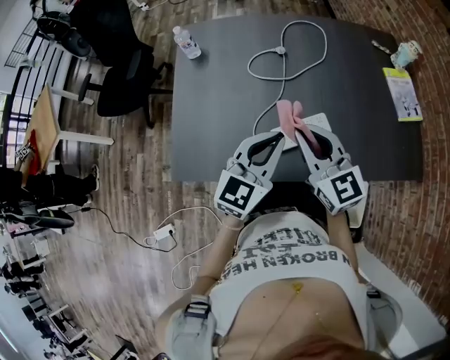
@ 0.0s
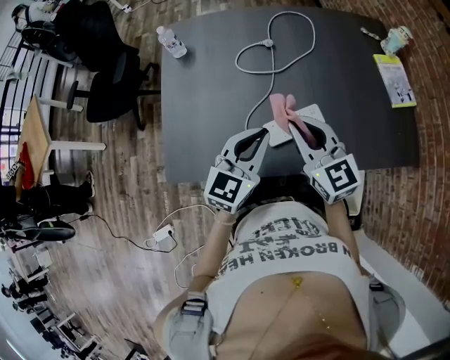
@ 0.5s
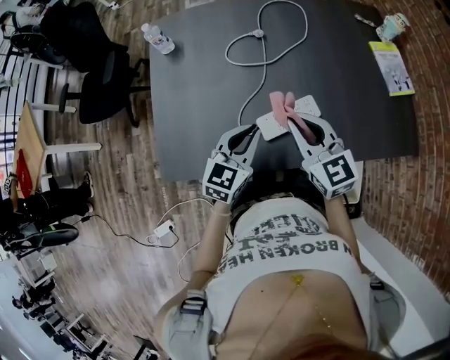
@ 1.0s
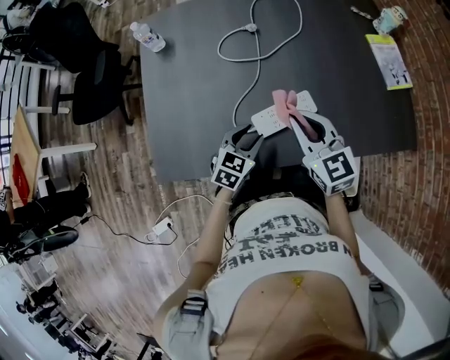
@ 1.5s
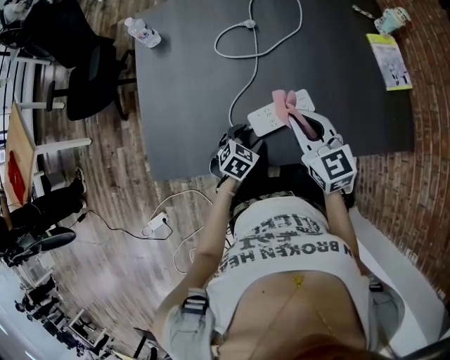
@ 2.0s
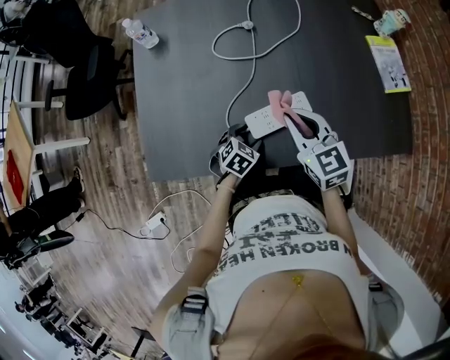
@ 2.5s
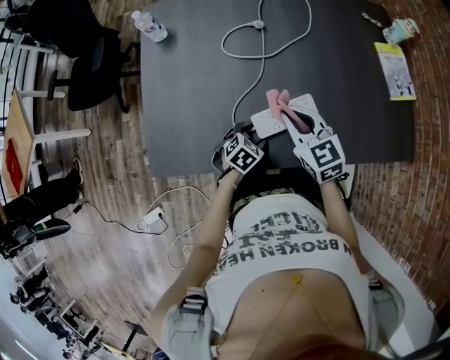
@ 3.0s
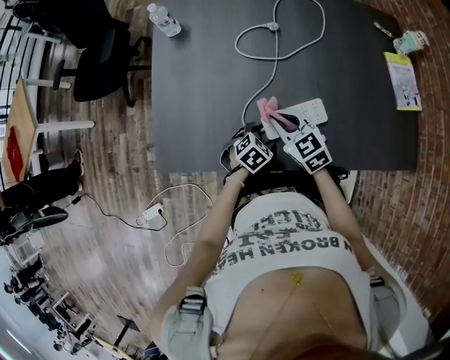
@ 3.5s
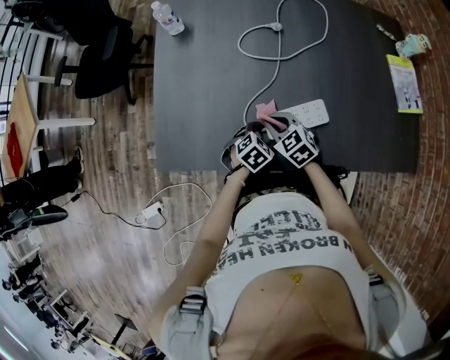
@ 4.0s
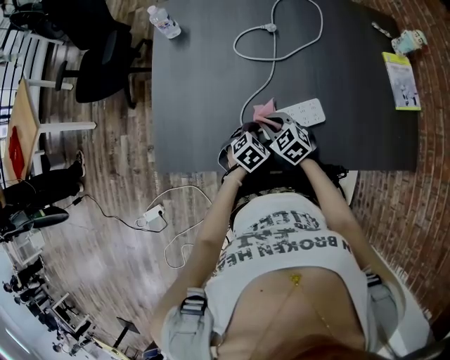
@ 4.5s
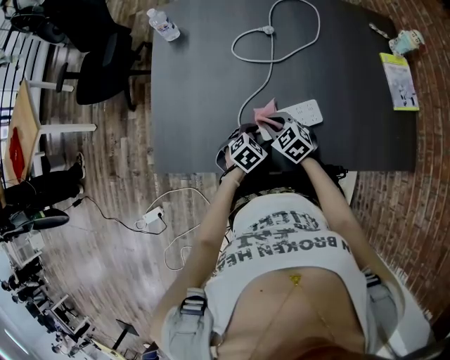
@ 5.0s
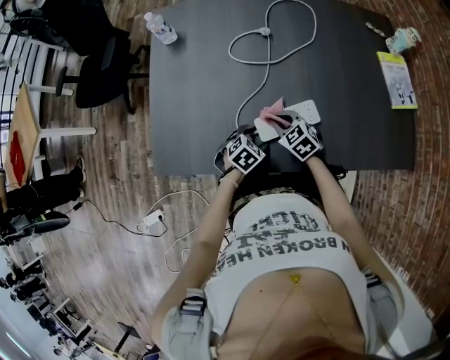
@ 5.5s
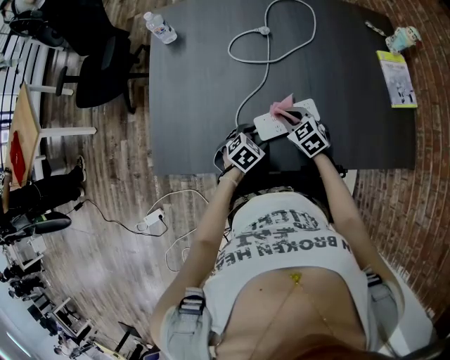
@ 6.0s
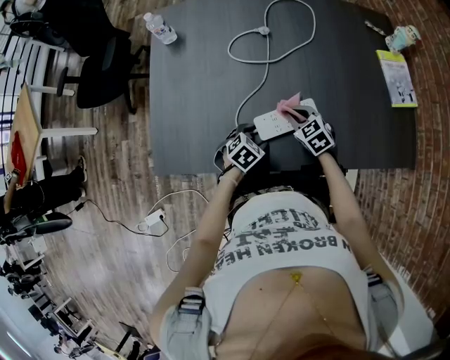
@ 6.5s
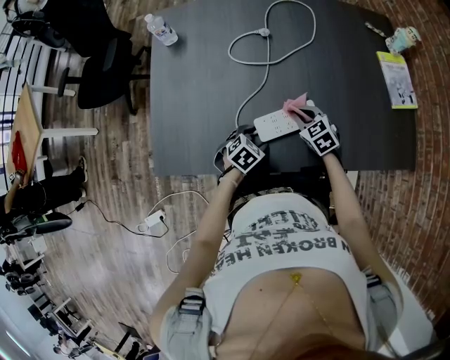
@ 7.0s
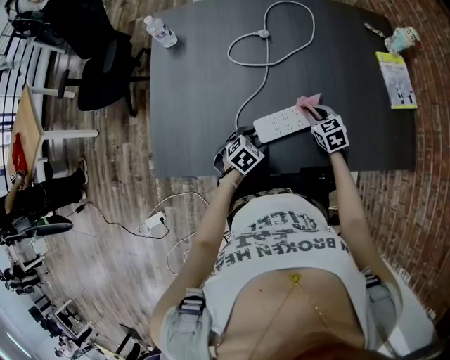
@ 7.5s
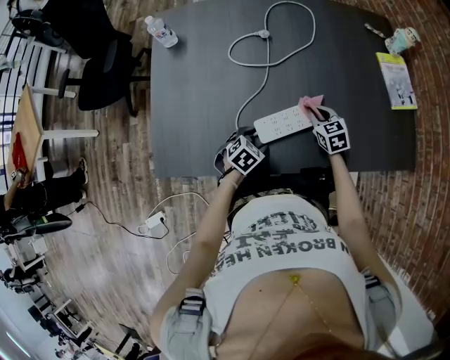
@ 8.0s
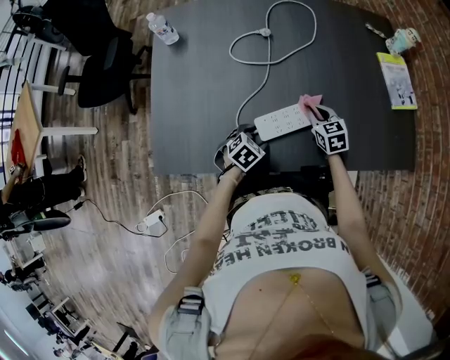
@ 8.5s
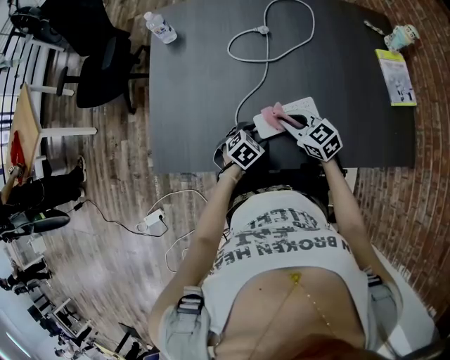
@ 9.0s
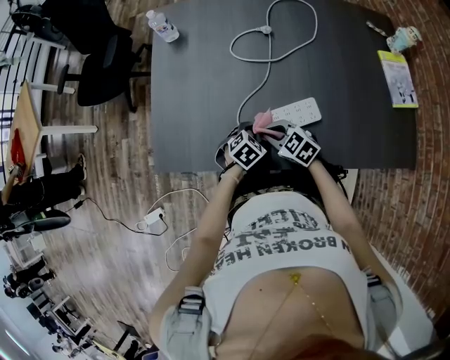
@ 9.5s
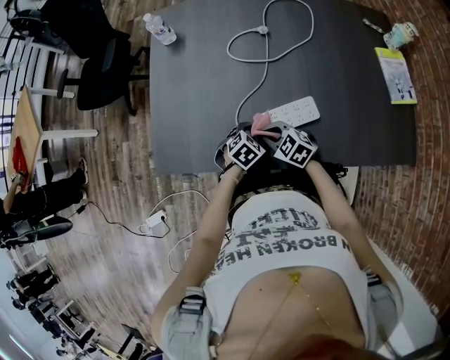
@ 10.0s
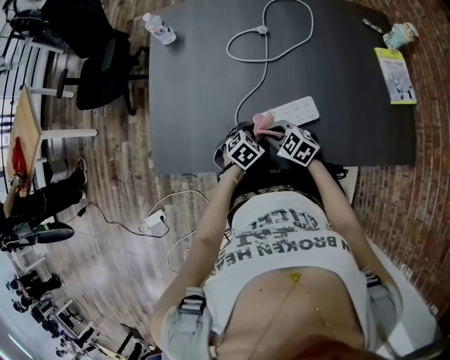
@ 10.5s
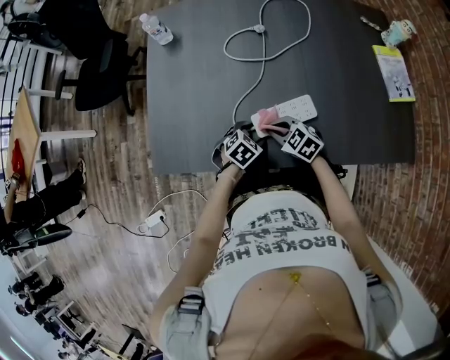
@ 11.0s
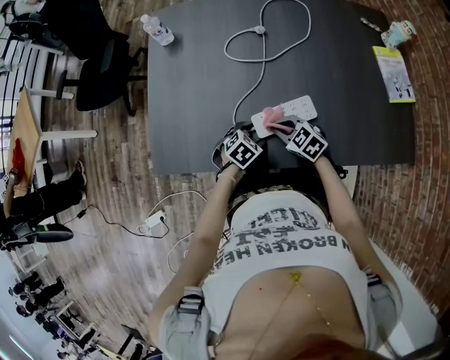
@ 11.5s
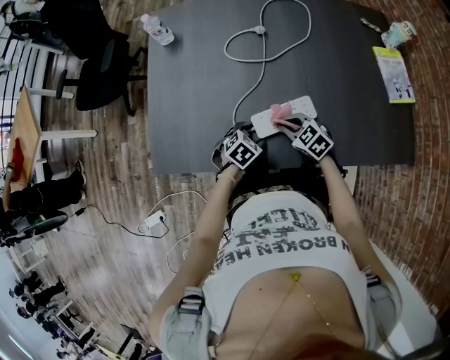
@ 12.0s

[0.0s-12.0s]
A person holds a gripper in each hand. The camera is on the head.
0.0s to 2.0s: The right gripper moves downward, approximately 10 cm. Meanwhile the left gripper shifts some 30 cm downward, tips its fingers downward by about 40 degrees, and opens.
2.0s to 4.0s: The right gripper shifts approximately 20 cm downward and to the left, and turns by roughly 30 degrees.
4.0s to 6.0s: The right gripper goes about 10 cm to the right.
6.0s to 8.0s: The right gripper goes approximately 10 cm to the right and forward, and rotates approximately 20 degrees.
8.0s to 10.0s: The right gripper changes place by approximately 20 cm, and turns by approximately 40 degrees.
10.0s to 12.0s: The right gripper changes place by some 10 cm.

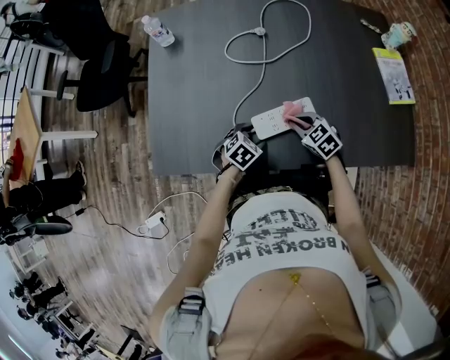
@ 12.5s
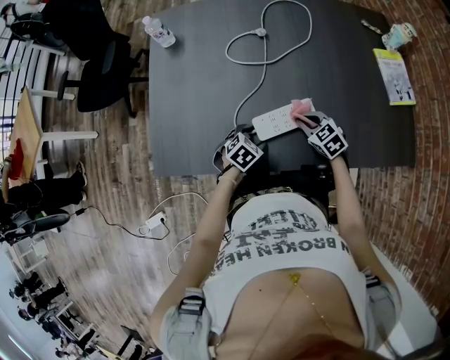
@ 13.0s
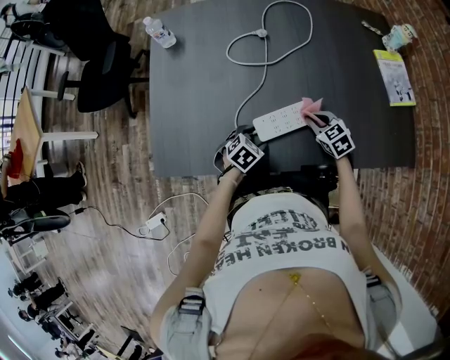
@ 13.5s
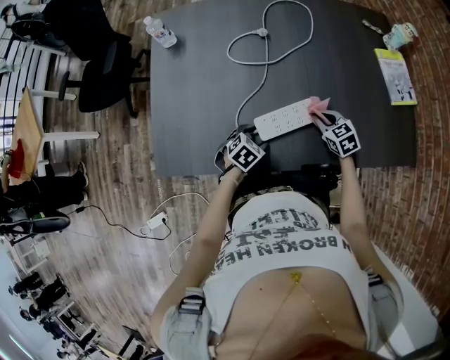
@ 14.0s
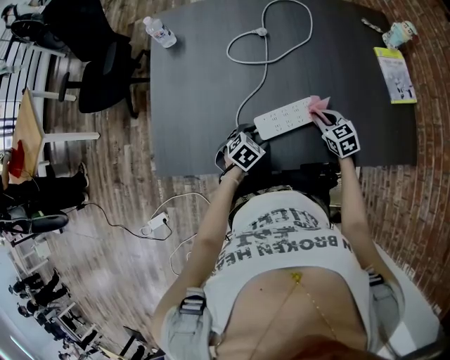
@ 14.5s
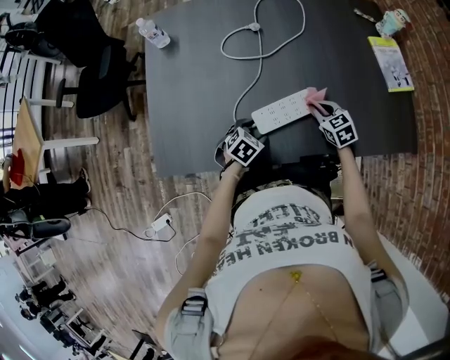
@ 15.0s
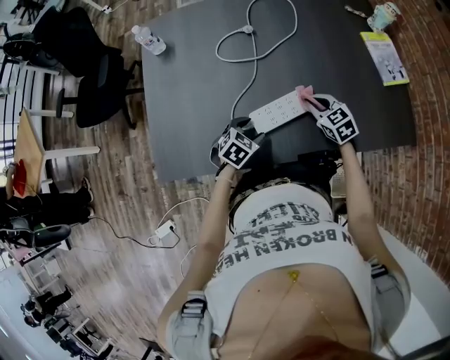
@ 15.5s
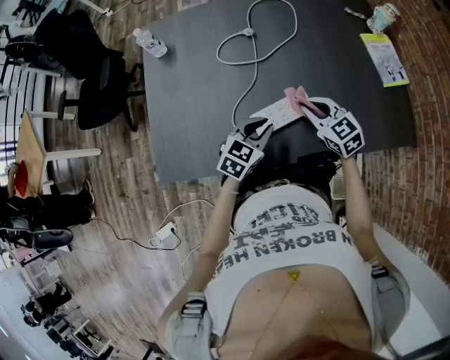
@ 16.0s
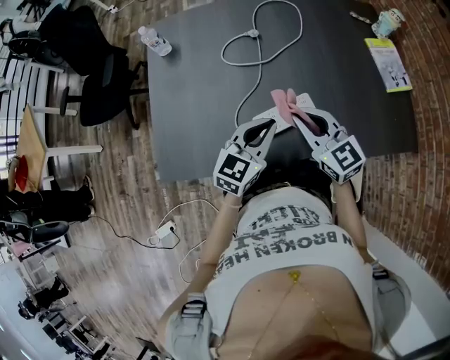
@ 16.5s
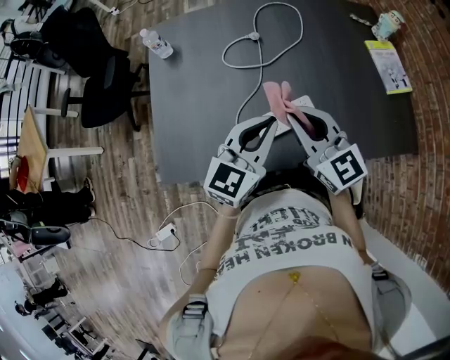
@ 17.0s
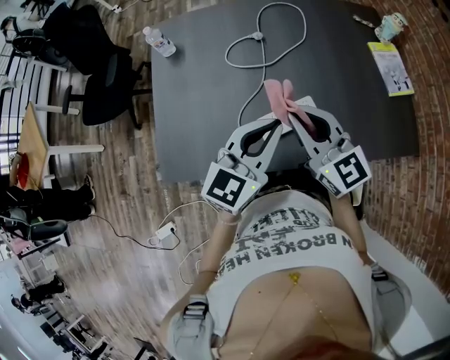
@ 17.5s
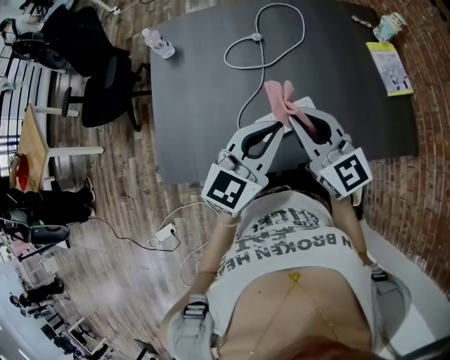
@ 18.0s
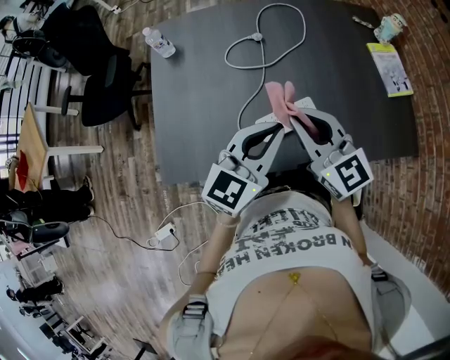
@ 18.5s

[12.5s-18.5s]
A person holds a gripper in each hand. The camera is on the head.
12.5s to 14.5s: The right gripper moves to the right, approximately 10 cm.
14.5s to 16.5s: The left gripper shifts approximately 25 cm upward, angles its fingers upward, by some 40 degrees, and closes, while the right gripper moves upward and to the left, approximately 25 cm, and tilts its fingers approximately 30 degrees upward.
16.5s to 18.5s: The grippers both shift upward by some 10 cm.

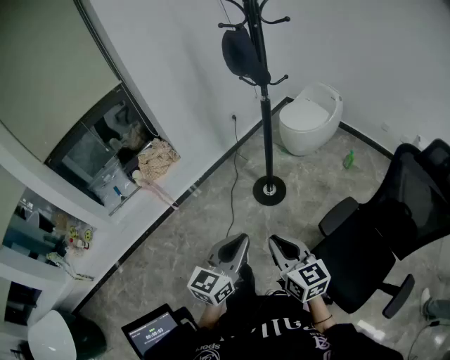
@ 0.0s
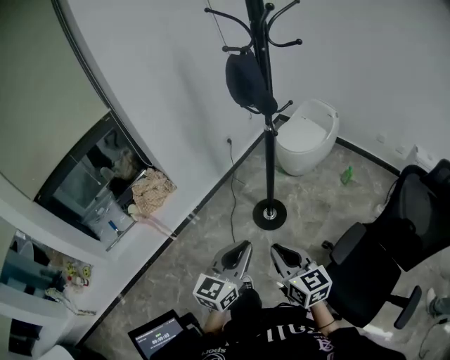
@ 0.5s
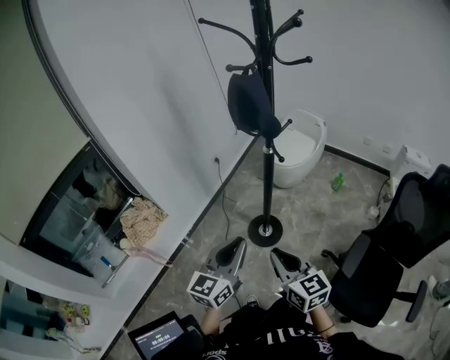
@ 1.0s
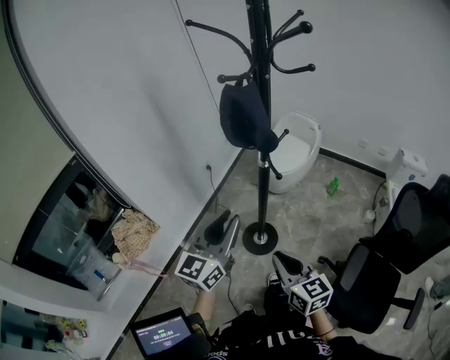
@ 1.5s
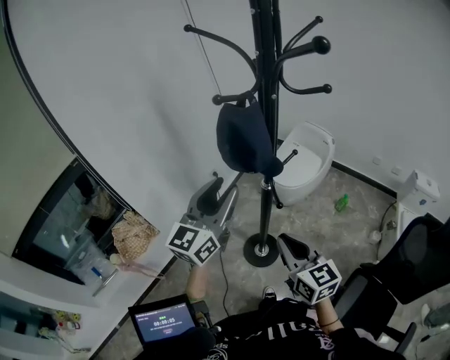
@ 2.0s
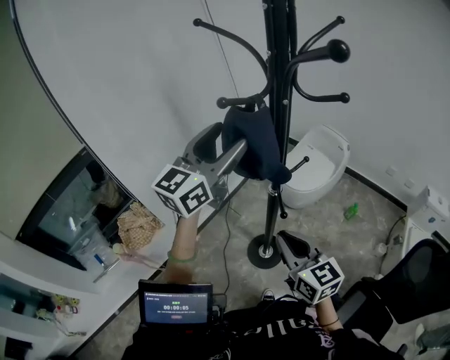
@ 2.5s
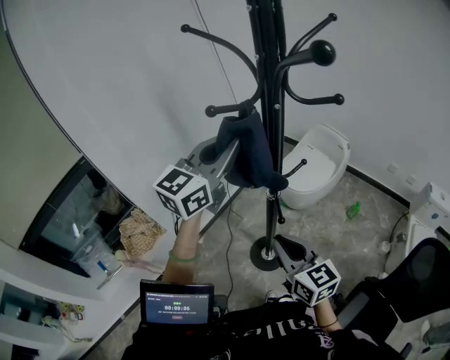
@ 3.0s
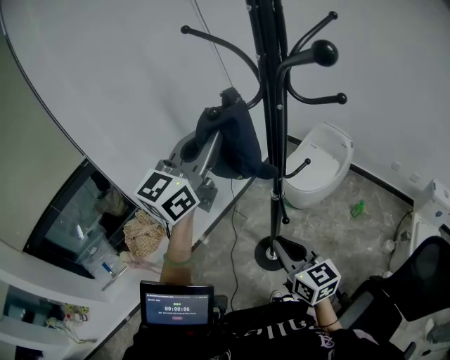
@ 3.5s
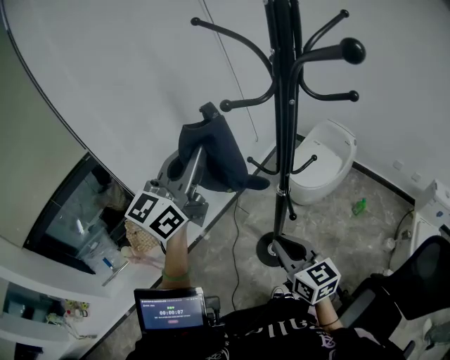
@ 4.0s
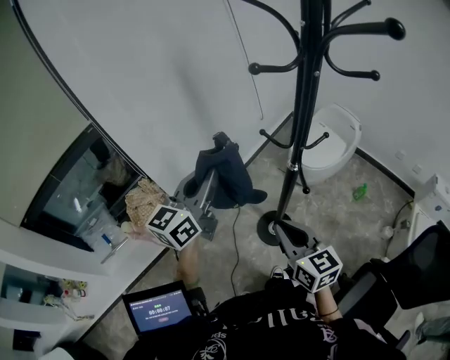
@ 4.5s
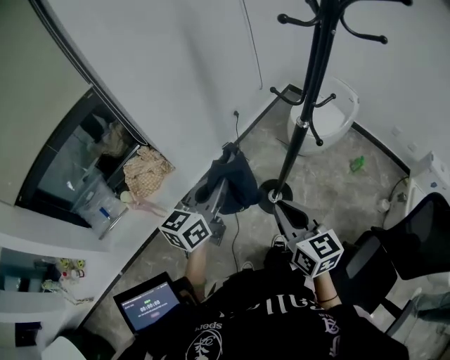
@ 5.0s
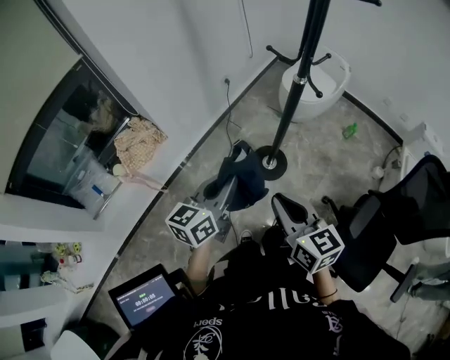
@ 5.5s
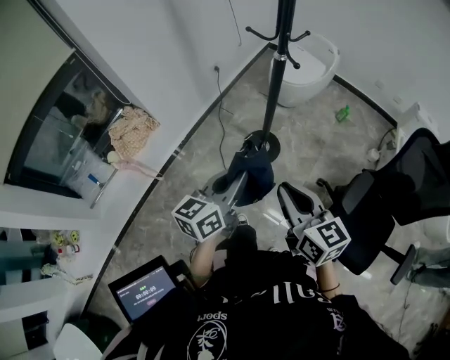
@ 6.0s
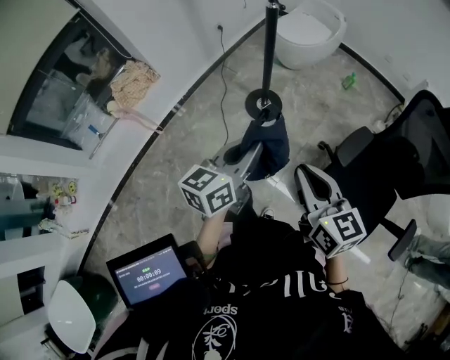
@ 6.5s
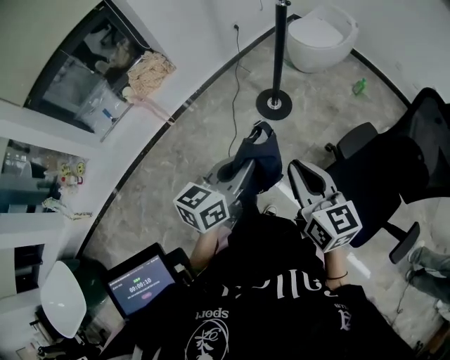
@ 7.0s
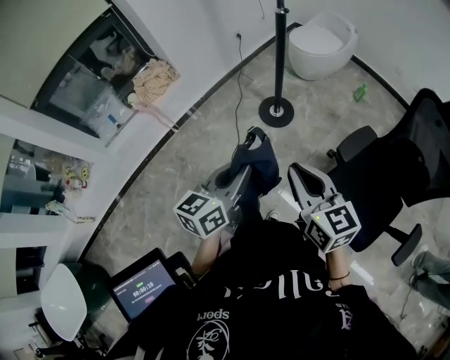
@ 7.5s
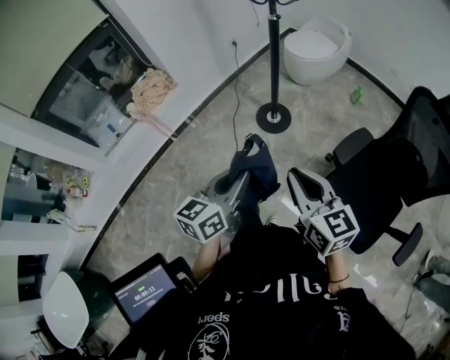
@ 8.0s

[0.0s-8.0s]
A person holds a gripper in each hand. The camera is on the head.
0.0s to 2.0s: The pair of grippers is taken forward, about 50 cm. The left gripper opens.
2.0s to 4.0s: The right gripper changes place by some 5 cm. Meanwhile the left gripper heads upward, to the left and forward, covering approximately 15 cm, and closes its fingers.
4.0s to 6.0s: The left gripper heads backward and downward, covering roughly 50 cm, and turns by about 40 degrees; the right gripper moves backward, approximately 30 cm.
6.0s to 8.0s: The left gripper is displaced backward by about 25 cm. The right gripper travels backward and to the right by some 25 cm.

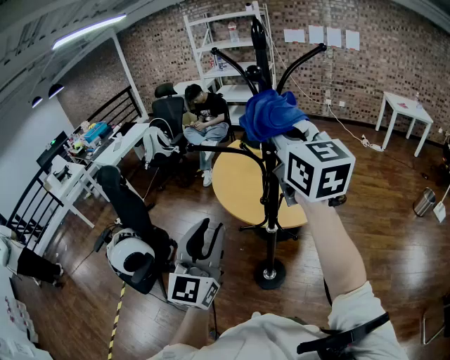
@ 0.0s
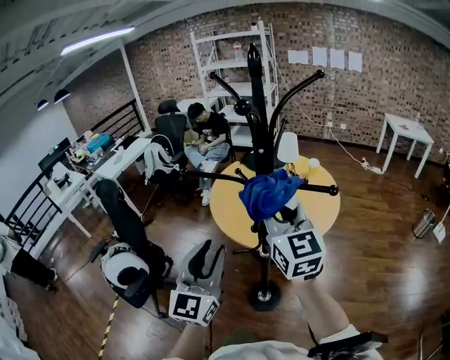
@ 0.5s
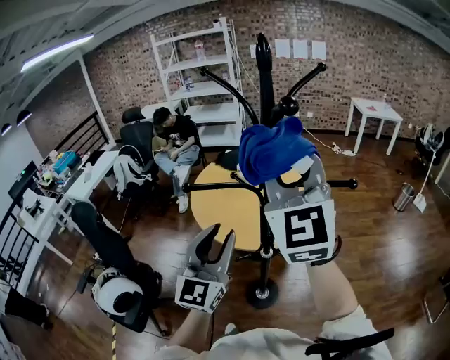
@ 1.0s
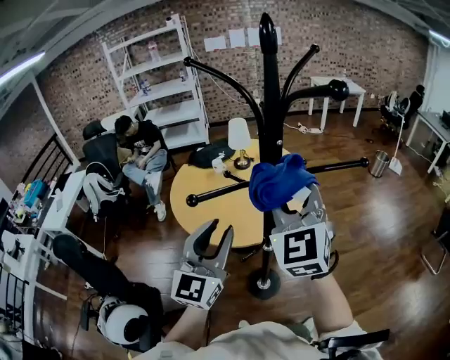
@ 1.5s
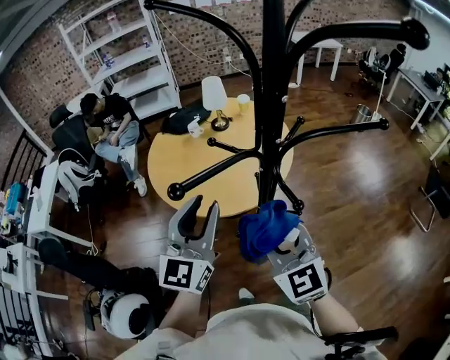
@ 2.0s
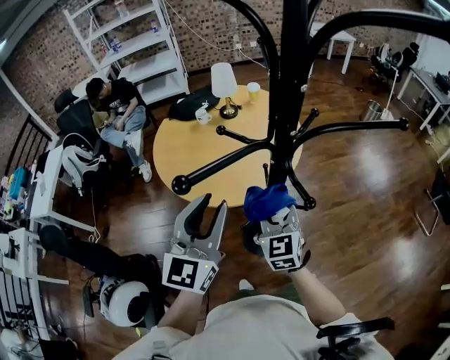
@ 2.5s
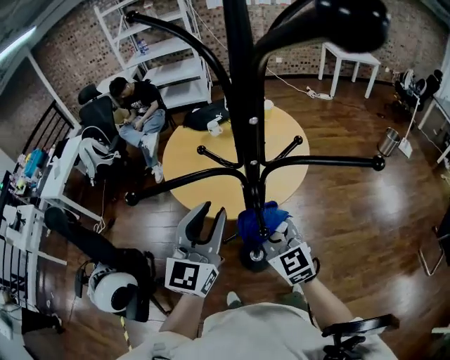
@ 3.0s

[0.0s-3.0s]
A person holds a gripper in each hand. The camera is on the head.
0.0s to 1.5s: The left gripper changes place by roughly 15 cm, and turns by about 30 degrees. Meanwhile the right gripper moves up and down over some 15 cm, changing direction 2 times, and turns by roughly 50 degrees.
1.5s to 3.0s: The left gripper ends up about 10 cm from where it was; the right gripper travels downward by some 25 cm, and swivels approximately 40 degrees.
